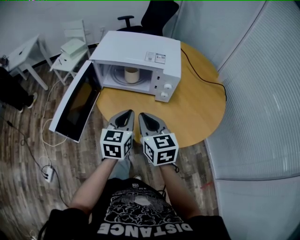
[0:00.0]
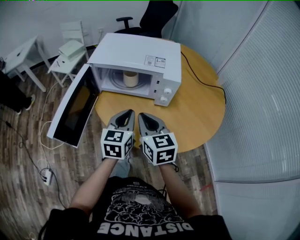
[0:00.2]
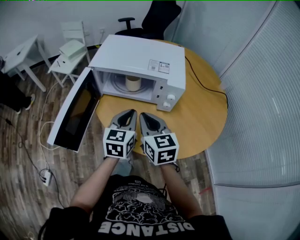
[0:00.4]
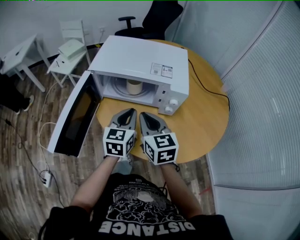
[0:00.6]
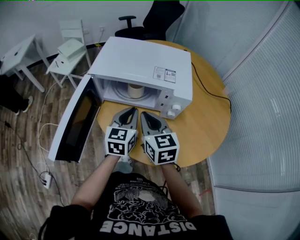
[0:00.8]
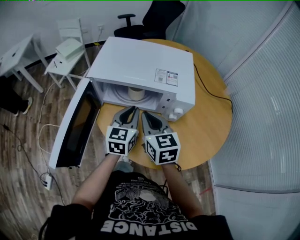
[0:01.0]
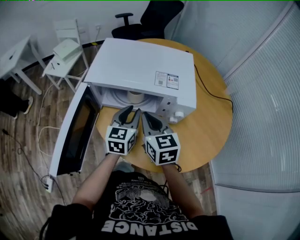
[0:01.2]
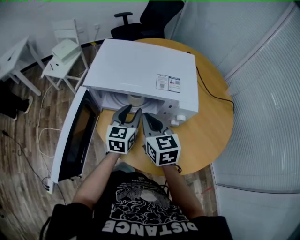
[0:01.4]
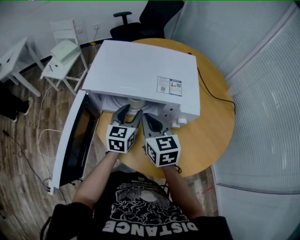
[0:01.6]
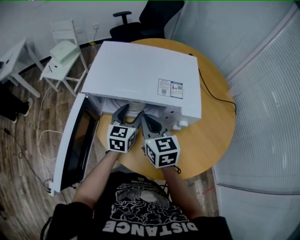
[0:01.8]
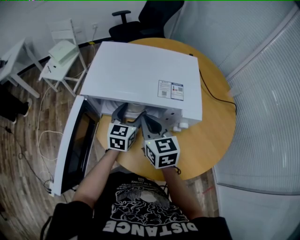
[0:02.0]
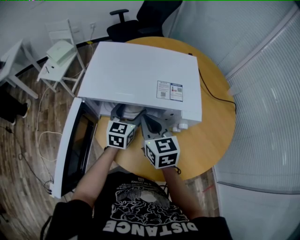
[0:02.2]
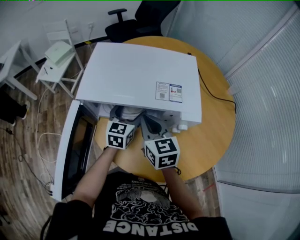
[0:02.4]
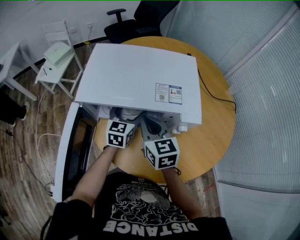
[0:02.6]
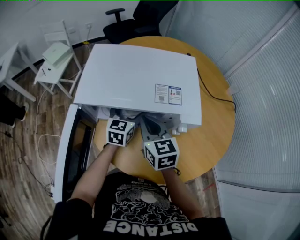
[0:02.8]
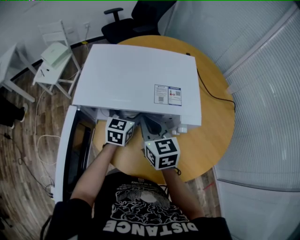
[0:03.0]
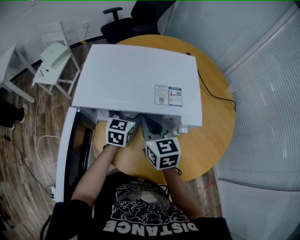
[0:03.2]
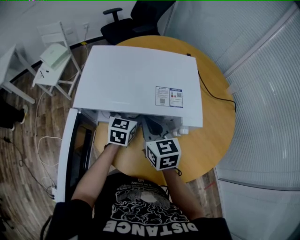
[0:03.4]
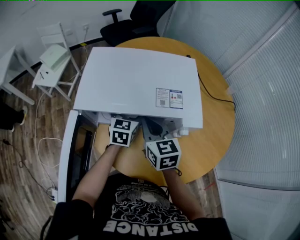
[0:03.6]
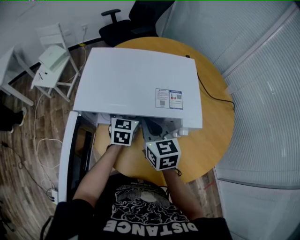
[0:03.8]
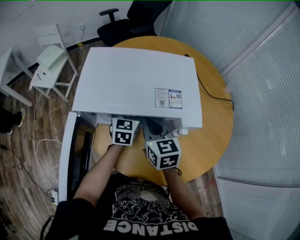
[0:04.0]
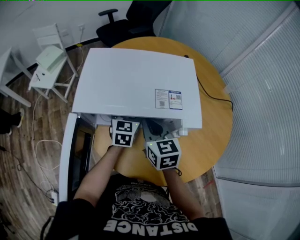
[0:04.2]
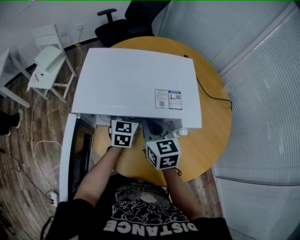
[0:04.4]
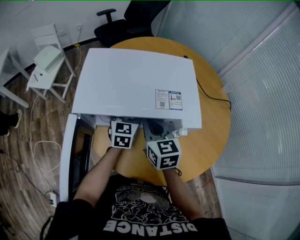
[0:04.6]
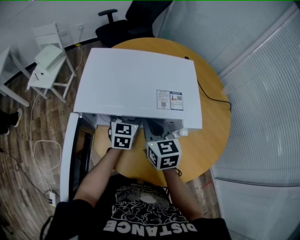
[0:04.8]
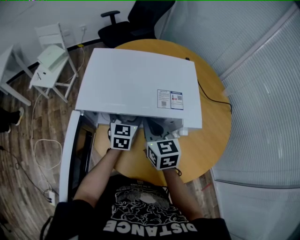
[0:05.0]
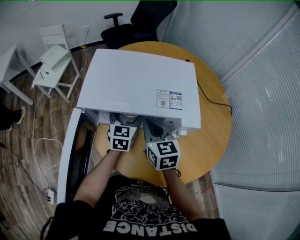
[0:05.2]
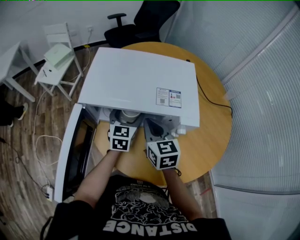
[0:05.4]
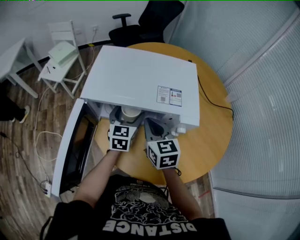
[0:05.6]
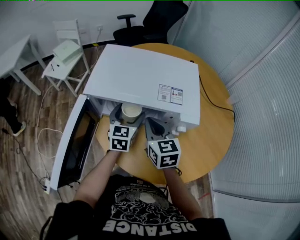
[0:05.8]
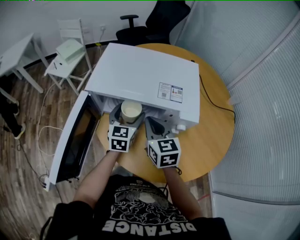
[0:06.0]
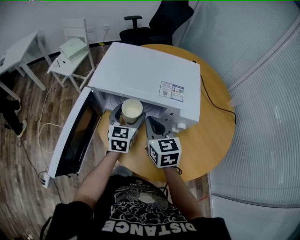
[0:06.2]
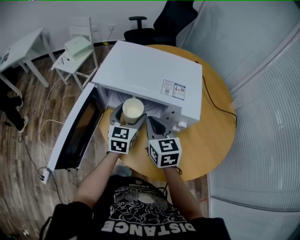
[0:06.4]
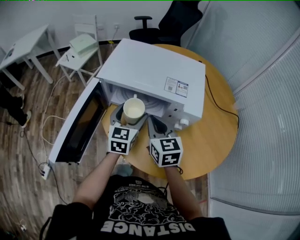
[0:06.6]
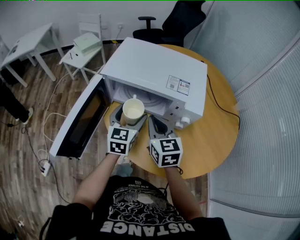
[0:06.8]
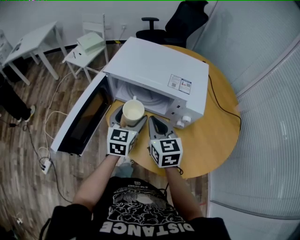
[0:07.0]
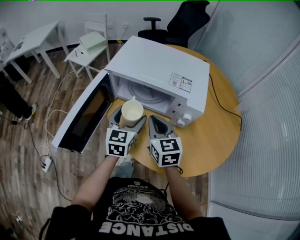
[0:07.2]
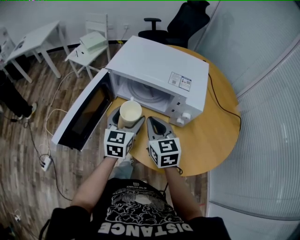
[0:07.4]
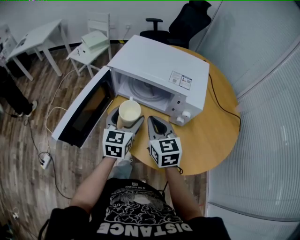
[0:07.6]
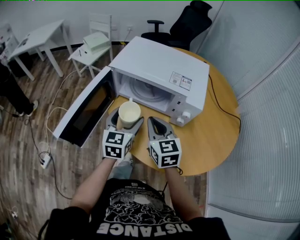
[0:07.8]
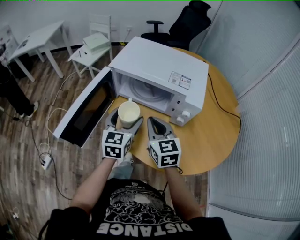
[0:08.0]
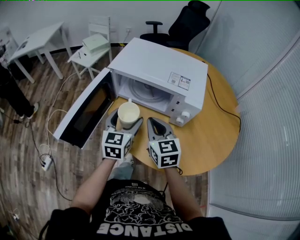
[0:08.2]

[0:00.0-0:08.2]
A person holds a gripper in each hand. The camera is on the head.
0:00.0 to 0:01.6: Both grippers travel together forward, about 20 cm. The left gripper opens up.
0:01.6 to 0:03.2: The right gripper ends up about 5 cm from where it was. The left gripper travels forward by roughly 5 cm, and opens.
0:03.2 to 0:05.0: The grippers move only a little.
0:05.0 to 0:06.6: The right gripper goes approximately 10 cm backward. The left gripper shifts roughly 15 cm backward and upward.
0:06.6 to 0:08.2: The grippers both shift backward by about 5 cm.

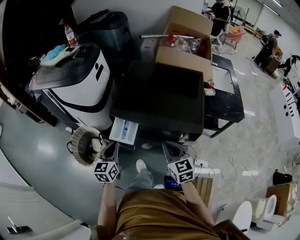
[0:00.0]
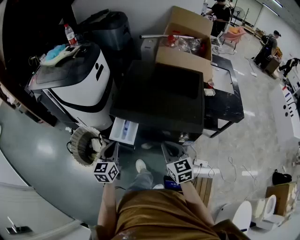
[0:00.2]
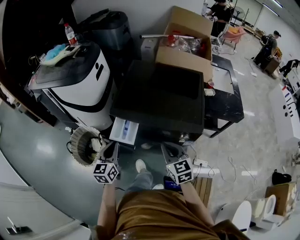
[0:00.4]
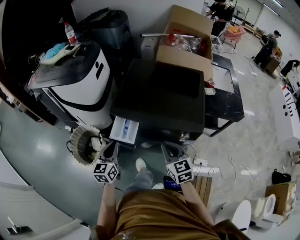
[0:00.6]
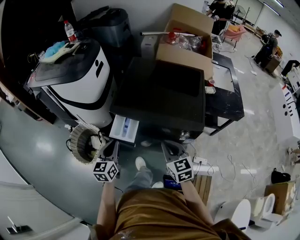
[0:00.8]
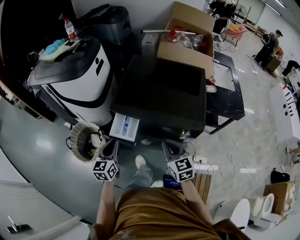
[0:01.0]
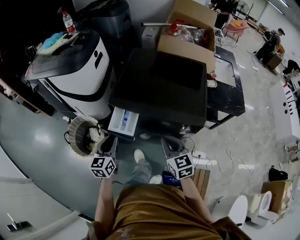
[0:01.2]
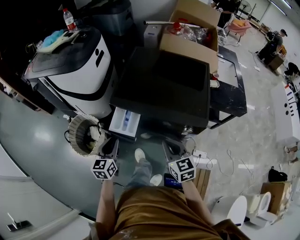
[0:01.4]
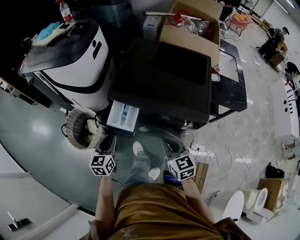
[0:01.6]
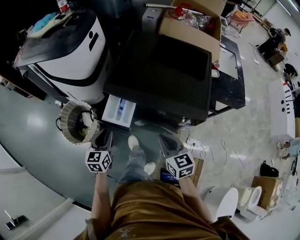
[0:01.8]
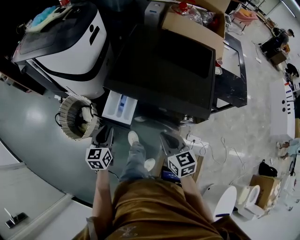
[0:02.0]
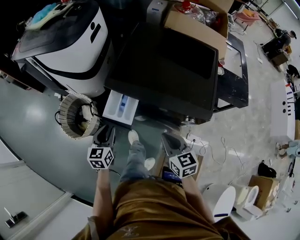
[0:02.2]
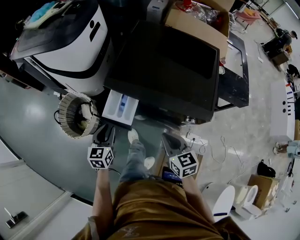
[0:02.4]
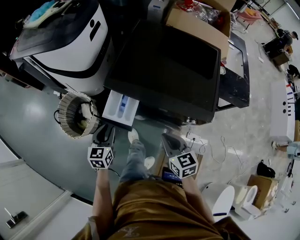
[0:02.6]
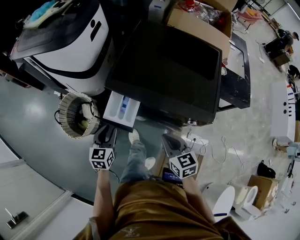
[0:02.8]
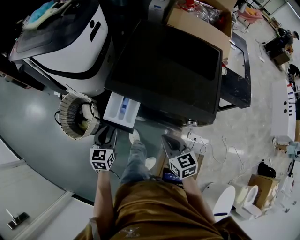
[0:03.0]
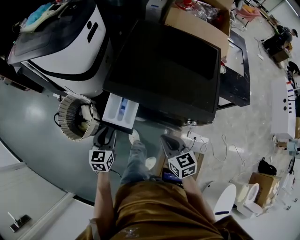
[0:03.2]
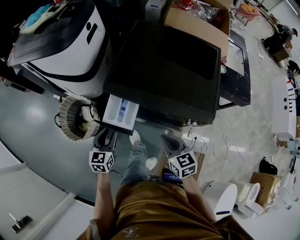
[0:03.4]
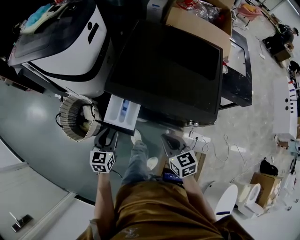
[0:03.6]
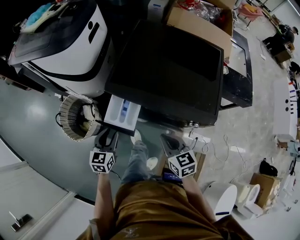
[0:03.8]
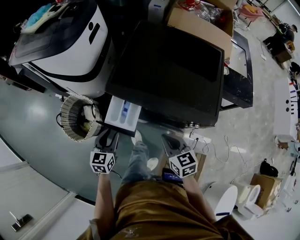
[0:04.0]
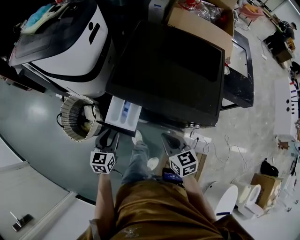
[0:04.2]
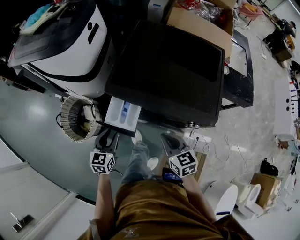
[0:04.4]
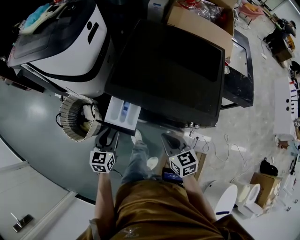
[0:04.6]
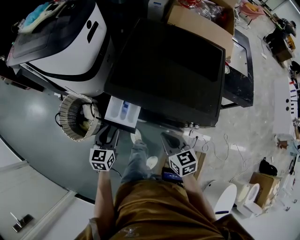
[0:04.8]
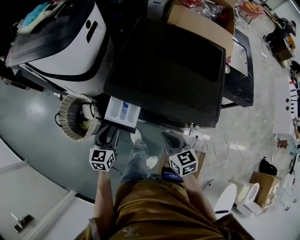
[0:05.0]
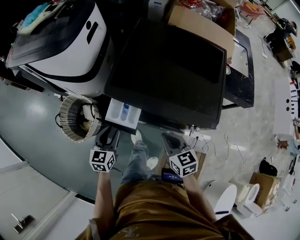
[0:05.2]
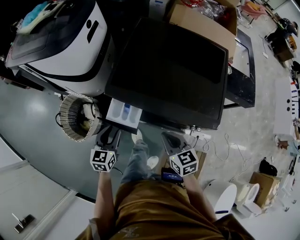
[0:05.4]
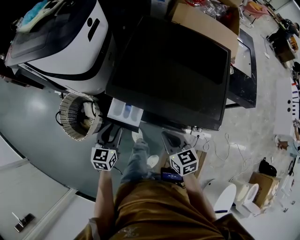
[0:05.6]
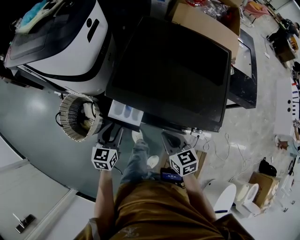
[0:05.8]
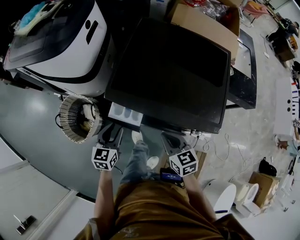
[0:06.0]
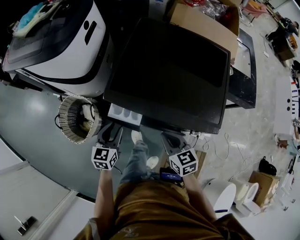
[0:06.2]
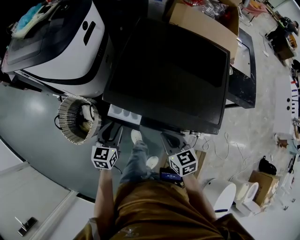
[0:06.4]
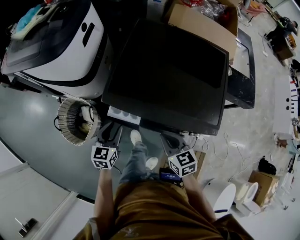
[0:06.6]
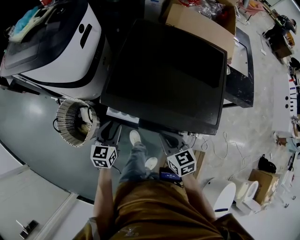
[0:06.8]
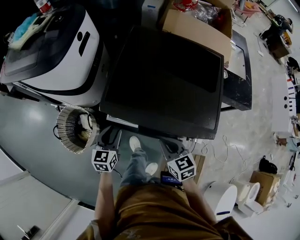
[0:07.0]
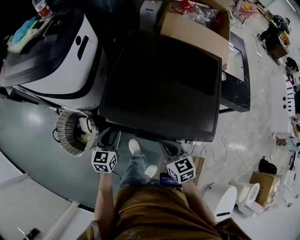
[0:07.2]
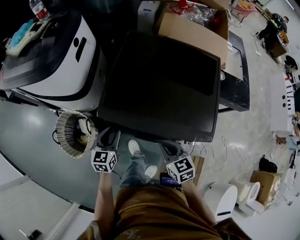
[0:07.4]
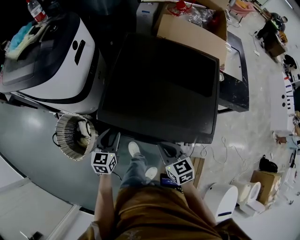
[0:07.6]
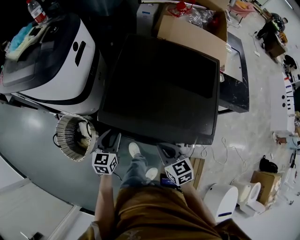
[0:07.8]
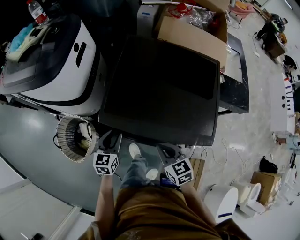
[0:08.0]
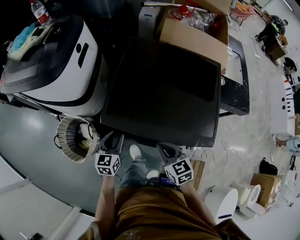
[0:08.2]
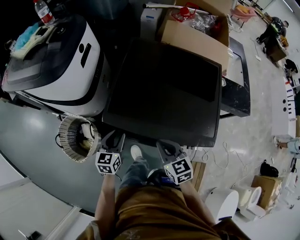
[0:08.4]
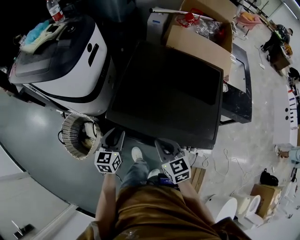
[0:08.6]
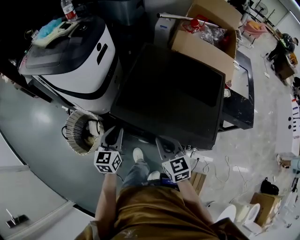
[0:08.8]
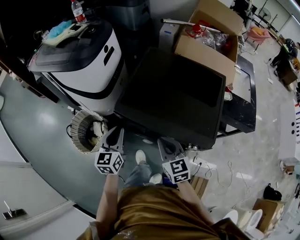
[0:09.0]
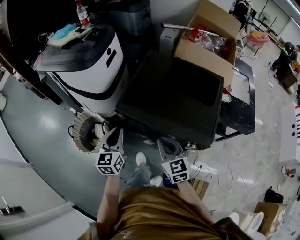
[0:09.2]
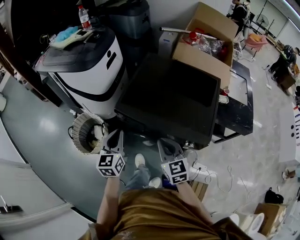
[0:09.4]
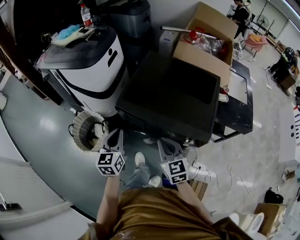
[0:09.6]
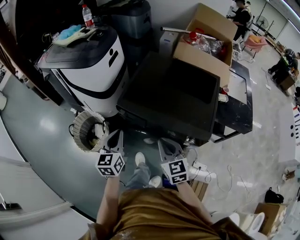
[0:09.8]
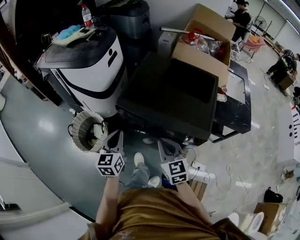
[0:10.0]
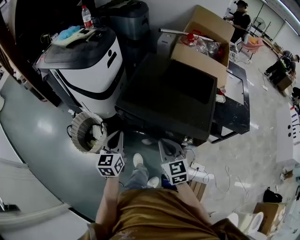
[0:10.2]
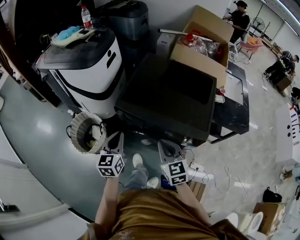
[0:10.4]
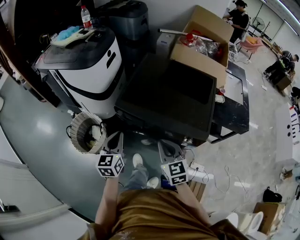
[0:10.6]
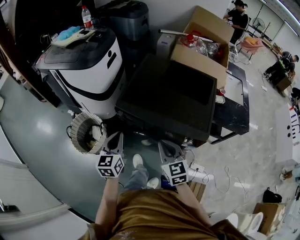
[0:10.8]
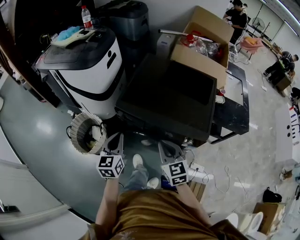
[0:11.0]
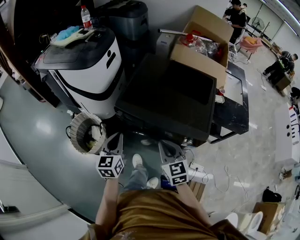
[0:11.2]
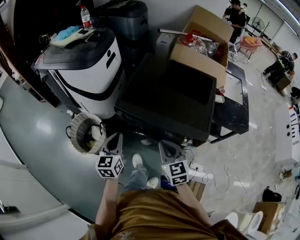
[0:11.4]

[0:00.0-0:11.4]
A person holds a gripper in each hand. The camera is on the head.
0:00.0 to 0:01.4: There are only small adjustments of the grippers.
0:01.4 to 0:02.8: The two grippers go about 5 cm downward.
0:02.8 to 0:04.2: The grippers stay close to where they were, moving slightly.
0:04.2 to 0:05.6: There are only small adjustments of the grippers.
0:05.6 to 0:07.2: The left gripper goes approximately 5 cm forward.
0:07.2 to 0:08.6: The right gripper ends up about 5 cm from where it was.
0:08.6 to 0:10.0: Both grippers move backward and upward, some 15 cm. The left gripper closes its fingers.
0:10.0 to 0:11.4: Both grippers stay put.

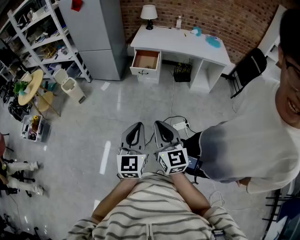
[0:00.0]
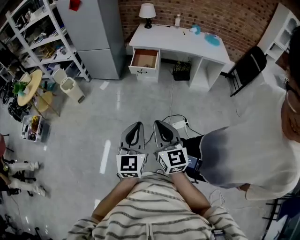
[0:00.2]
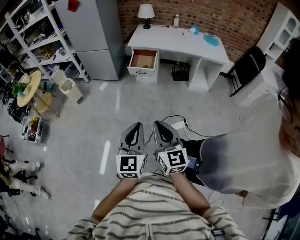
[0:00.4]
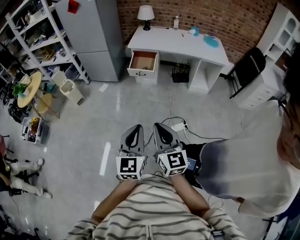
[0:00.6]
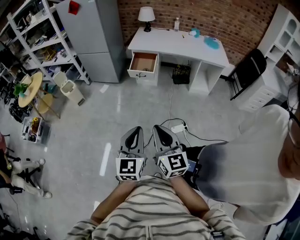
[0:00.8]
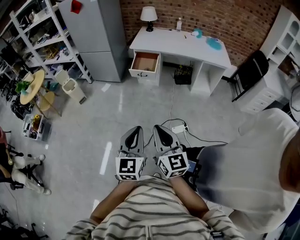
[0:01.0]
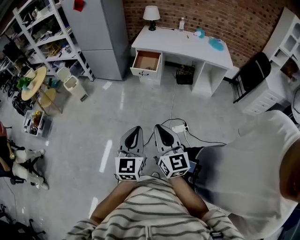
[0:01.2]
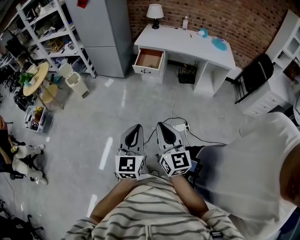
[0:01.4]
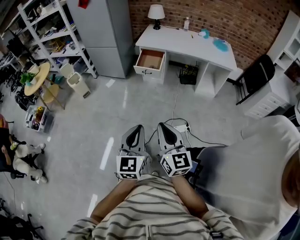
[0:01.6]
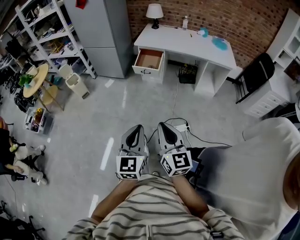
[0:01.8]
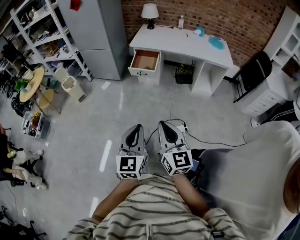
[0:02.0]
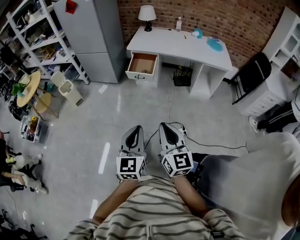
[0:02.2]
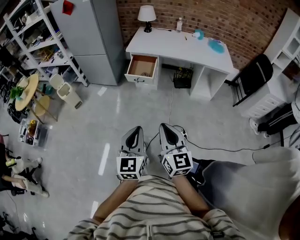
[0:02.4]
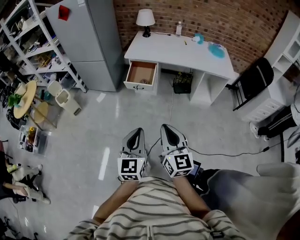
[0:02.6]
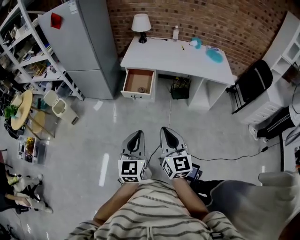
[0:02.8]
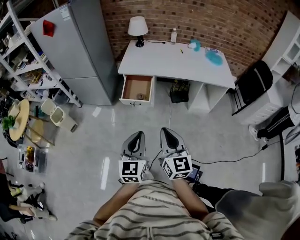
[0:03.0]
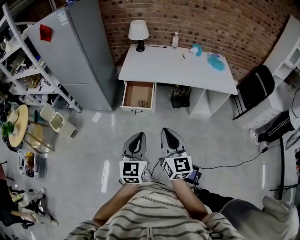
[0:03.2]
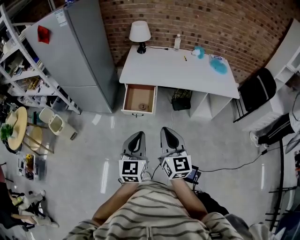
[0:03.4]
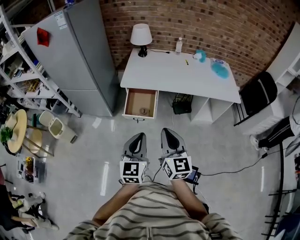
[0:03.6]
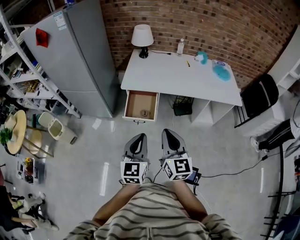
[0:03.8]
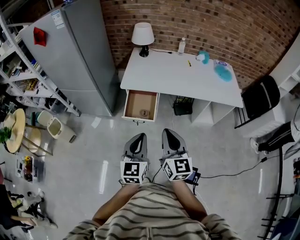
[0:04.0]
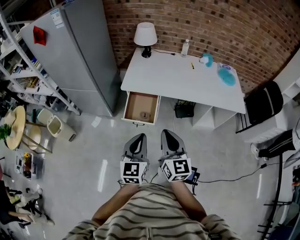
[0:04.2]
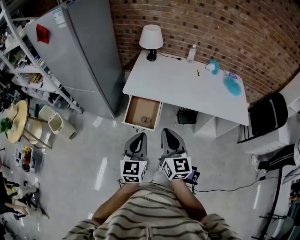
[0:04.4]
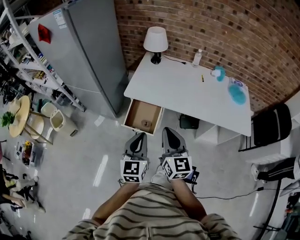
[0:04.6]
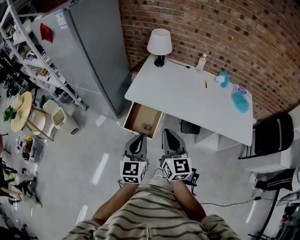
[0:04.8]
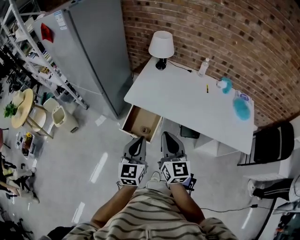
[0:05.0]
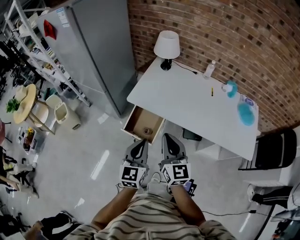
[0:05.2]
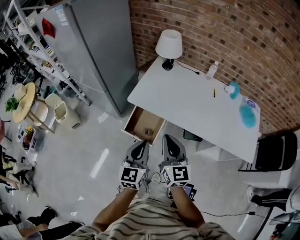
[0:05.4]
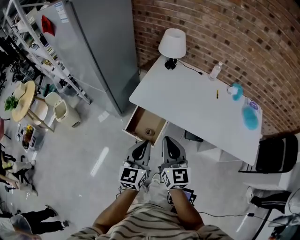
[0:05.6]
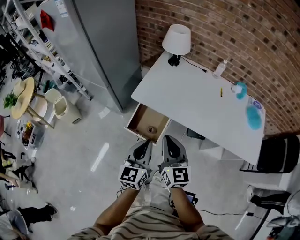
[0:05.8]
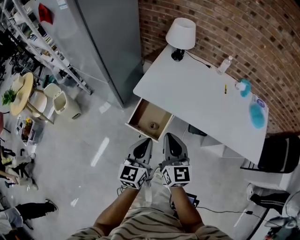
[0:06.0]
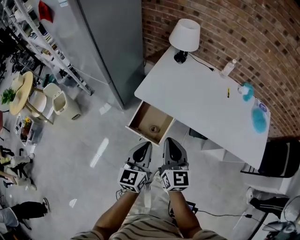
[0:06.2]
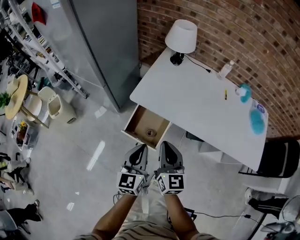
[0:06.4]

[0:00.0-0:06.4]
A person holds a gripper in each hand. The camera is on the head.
0:00.0 to 0:01.6: Both grippers move to the right, about 5 cm.
0:01.6 to 0:03.2: The two grippers travel together, forward, approximately 40 cm.
0:03.2 to 0:04.8: Both grippers travel together forward, roughly 30 cm.
0:04.8 to 0:06.4: The grippers both shift forward and downward by some 15 cm.
